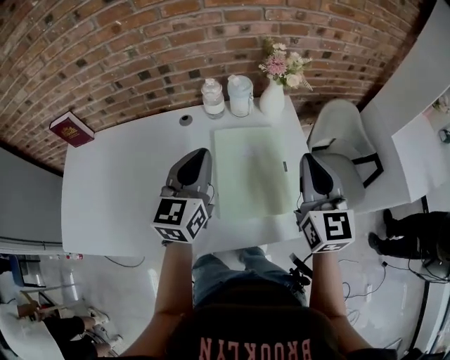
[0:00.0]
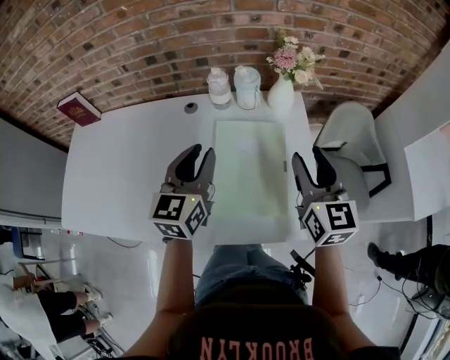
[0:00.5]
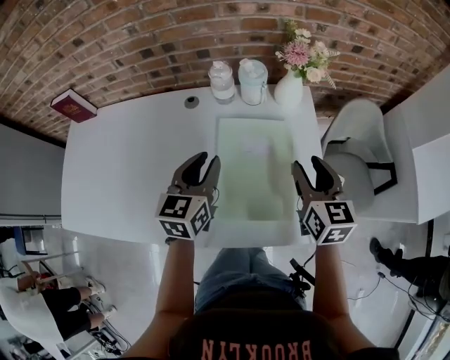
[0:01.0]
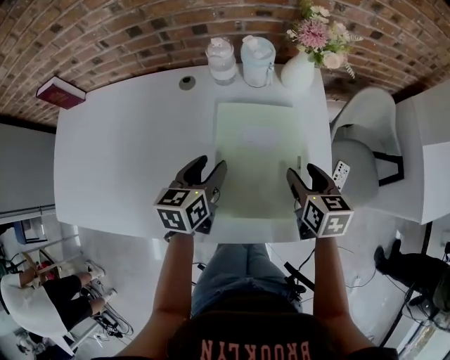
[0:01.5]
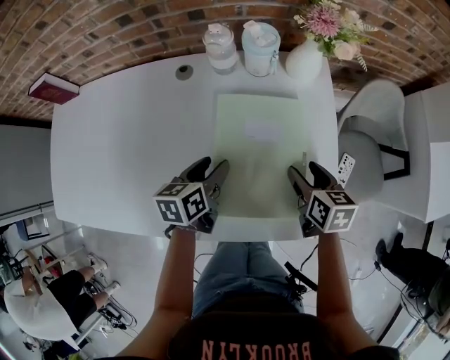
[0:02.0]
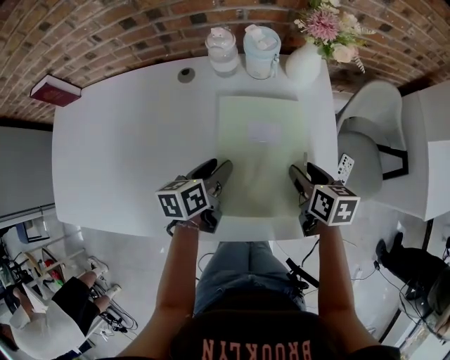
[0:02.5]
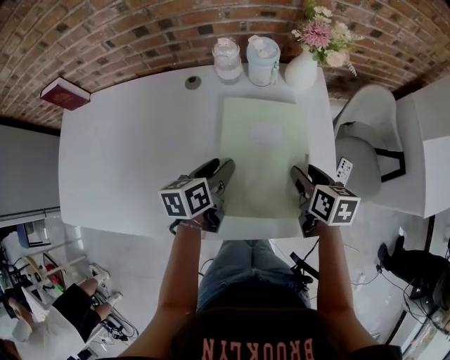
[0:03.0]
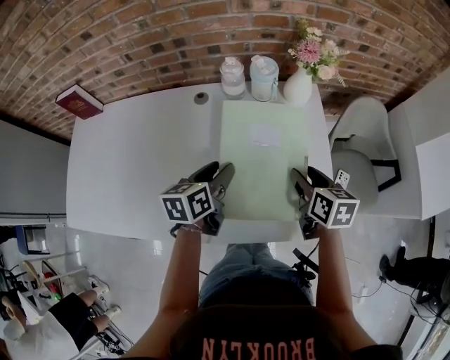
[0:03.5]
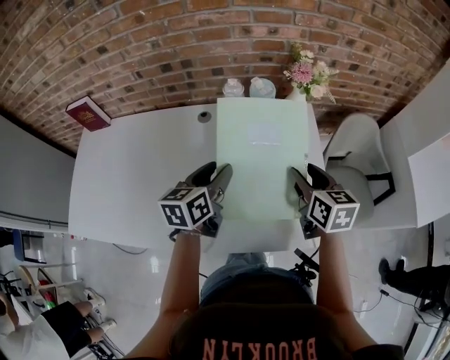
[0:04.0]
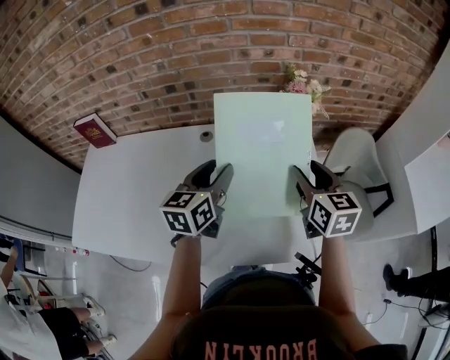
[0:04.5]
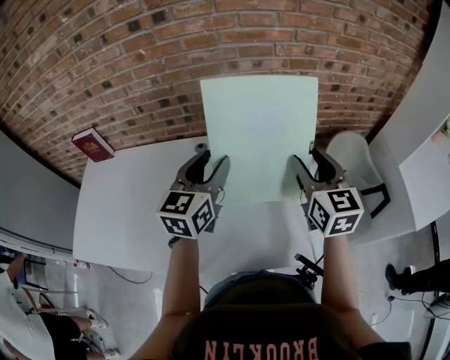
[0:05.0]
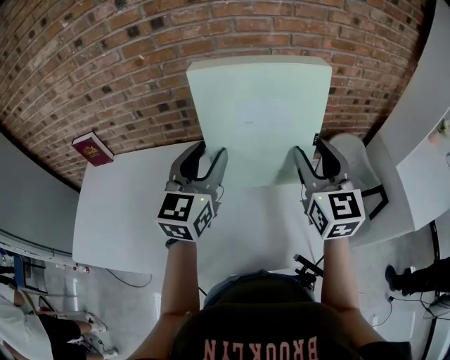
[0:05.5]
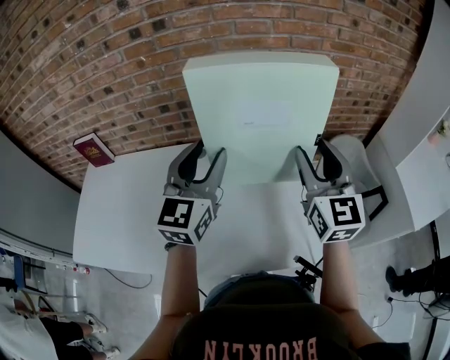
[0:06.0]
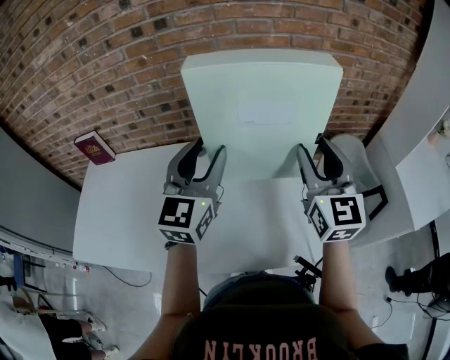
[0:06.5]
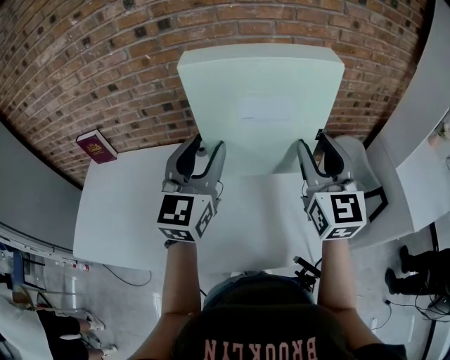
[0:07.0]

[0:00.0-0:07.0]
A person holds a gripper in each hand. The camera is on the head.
0:00.0 to 0:02.0: The two grippers go about 25 cm downward. The left gripper angles its fingers downward, by roughly 30 degrees, and opens up. The right gripper tilts its fingers about 40 degrees downward, and opens.
0:02.0 to 0:03.5: The grippers both shift upward by about 10 cm.
0:03.5 to 0:05.0: Both grippers travel together upward, about 20 cm. The left gripper rotates about 40 degrees, while the right gripper changes its angle by some 40 degrees.
0:05.0 to 0:07.0: The grippers both shift upward by approximately 10 cm.

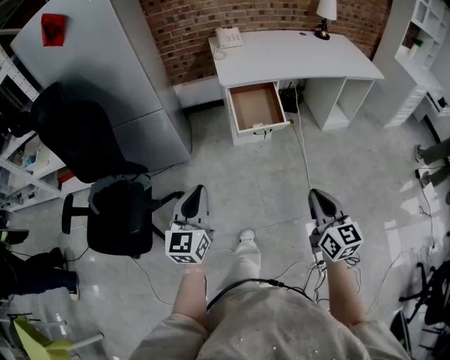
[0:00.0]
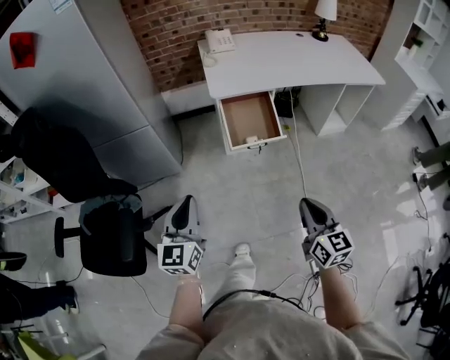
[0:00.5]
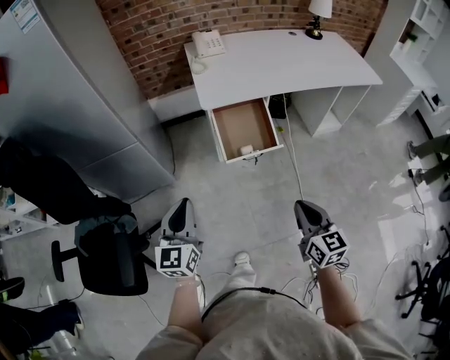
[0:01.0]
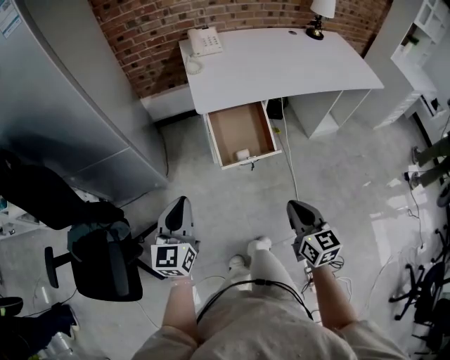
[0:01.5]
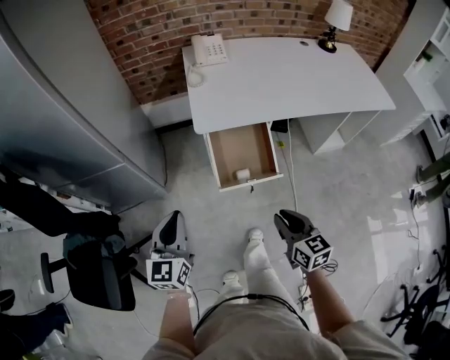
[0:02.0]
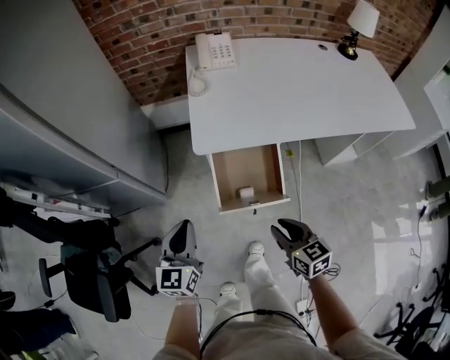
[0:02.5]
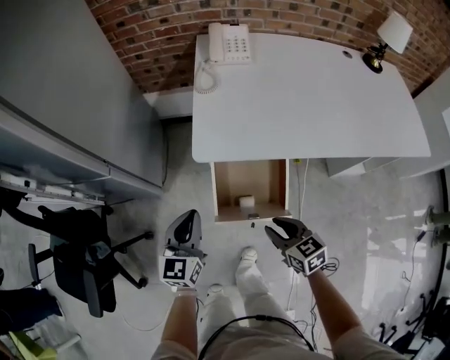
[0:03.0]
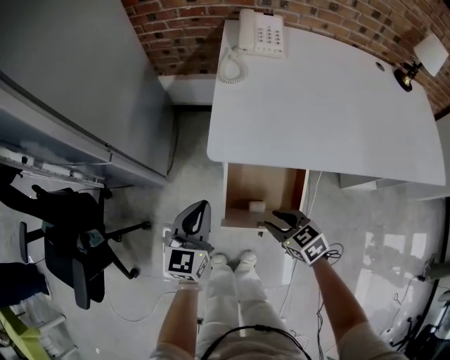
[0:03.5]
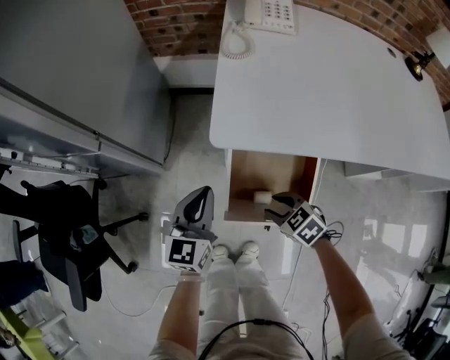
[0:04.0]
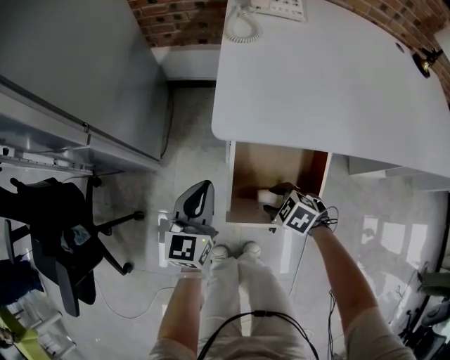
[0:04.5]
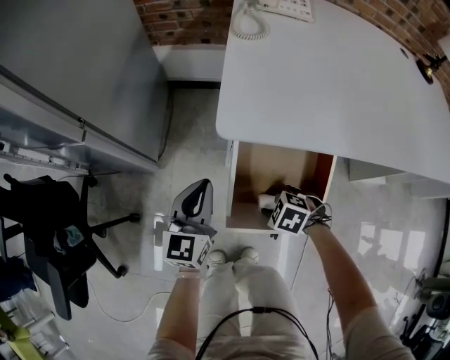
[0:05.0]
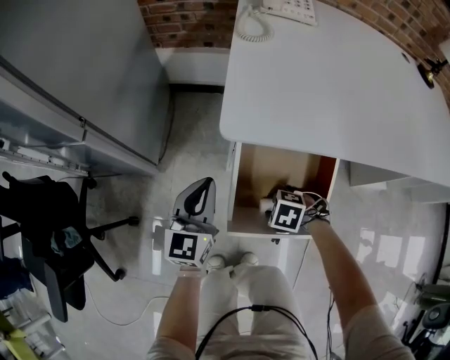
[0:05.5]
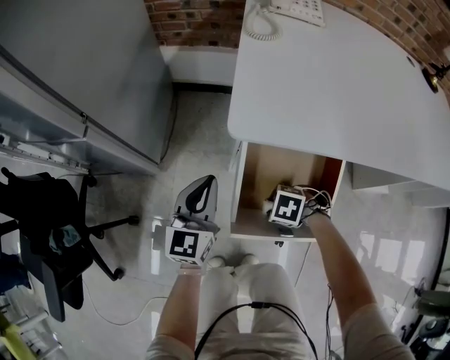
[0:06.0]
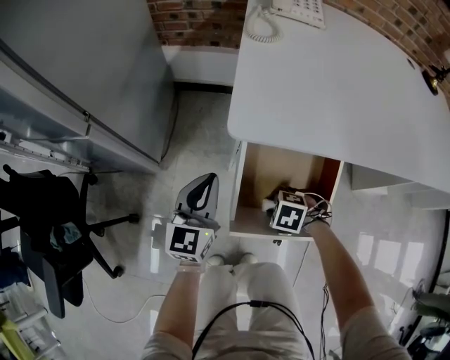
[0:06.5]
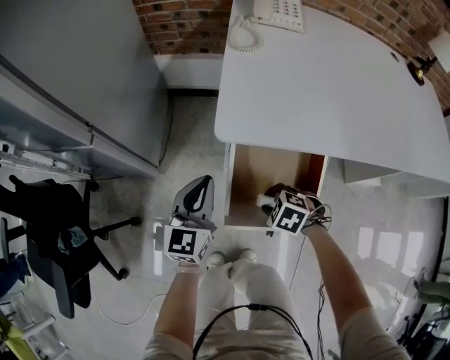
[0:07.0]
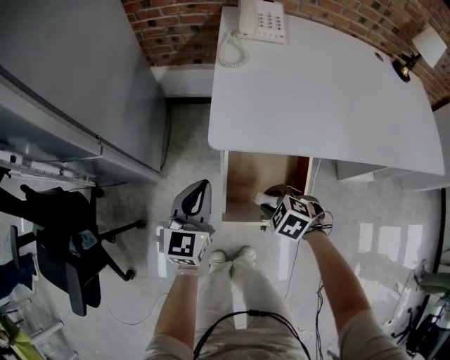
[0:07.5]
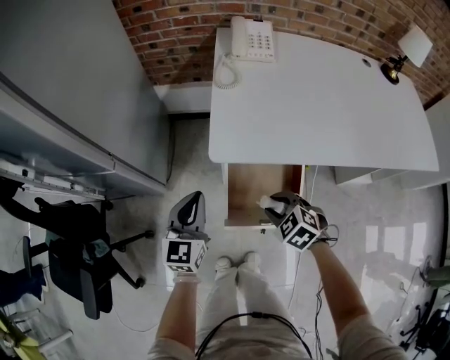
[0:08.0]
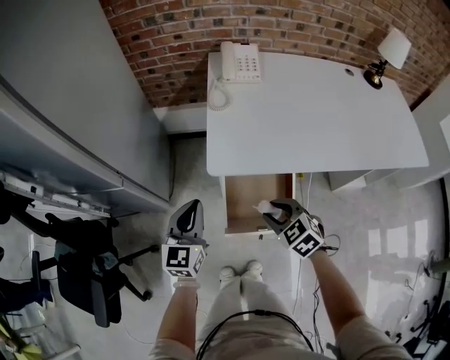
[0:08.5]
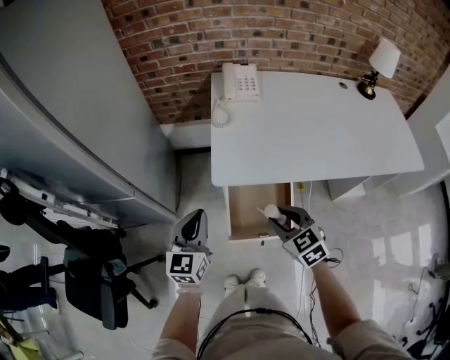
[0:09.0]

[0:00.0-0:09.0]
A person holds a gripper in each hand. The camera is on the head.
0:00.0 to 0:02.0: The grippers both shift forward by about 30 cm.
0:02.0 to 0:04.5: The grippers both shift downward by roughly 25 cm. The right gripper tilts its fingers about 40 degrees downward, and opens.
0:07.0 to 0:09.0: The right gripper goes roughly 30 cm upward, and tilts its fingers roughly 40 degrees upward. The left gripper travels upward by roughly 20 cm.

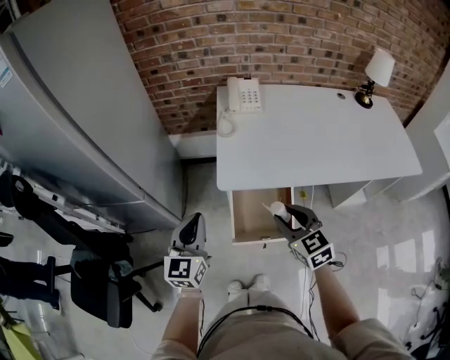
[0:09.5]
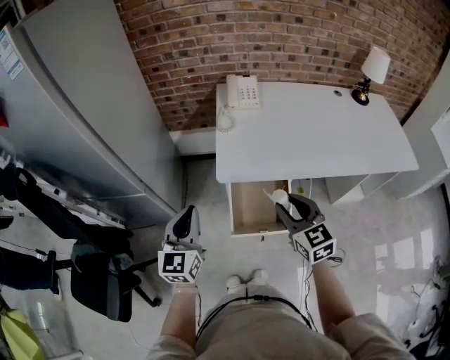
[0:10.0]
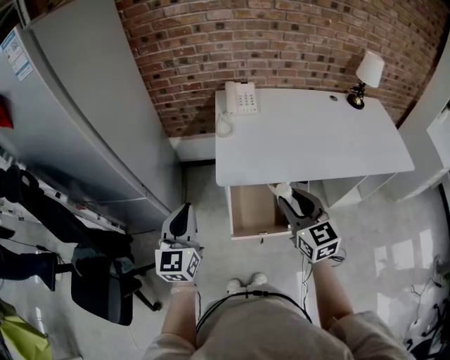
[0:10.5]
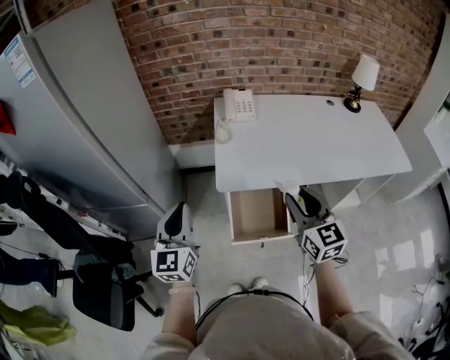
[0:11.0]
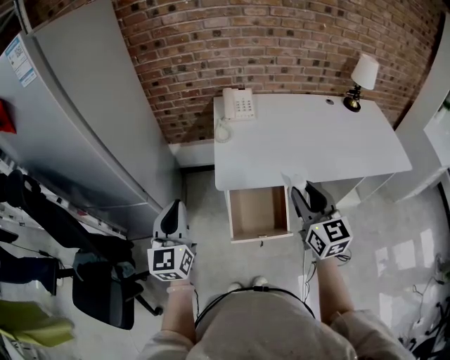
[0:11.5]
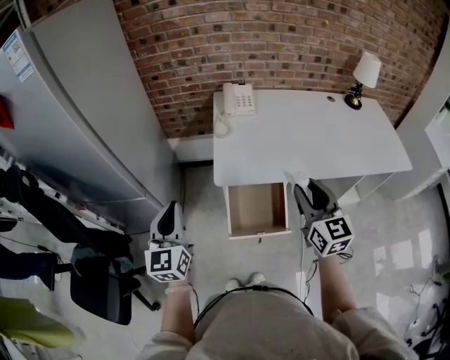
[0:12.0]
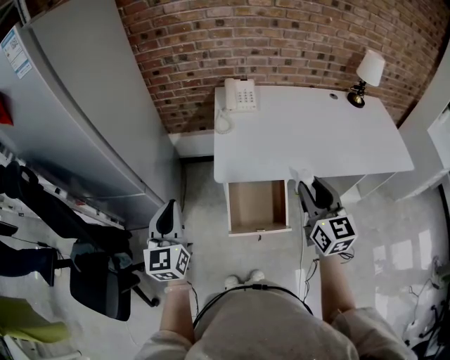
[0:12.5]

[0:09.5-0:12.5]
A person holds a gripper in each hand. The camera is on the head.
0:09.5 to 0:11.0: Both grippers travel together upward, some 10 cm. The right gripper changes its angle by approximately 20 degrees.
0:11.0 to 0:12.5: There are only small adjustments of the grippers.

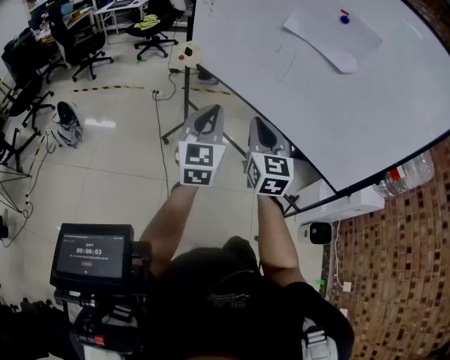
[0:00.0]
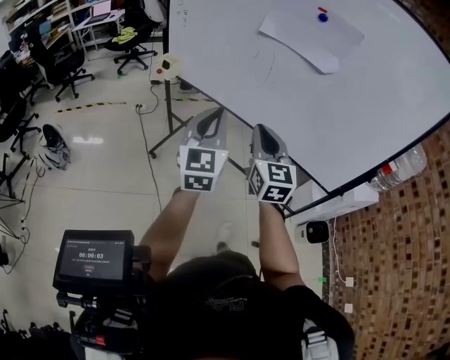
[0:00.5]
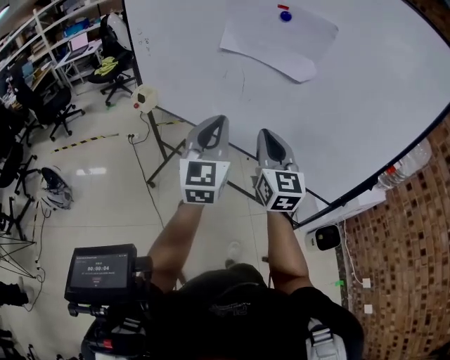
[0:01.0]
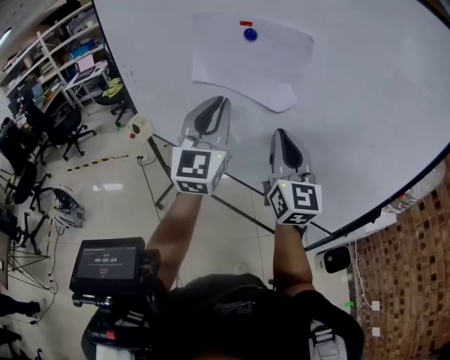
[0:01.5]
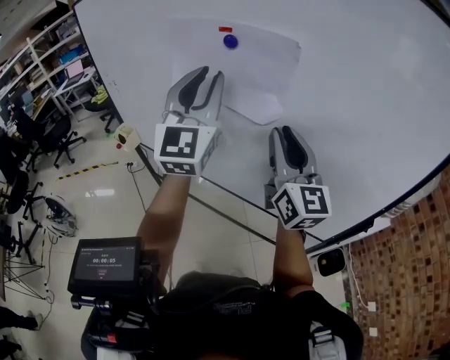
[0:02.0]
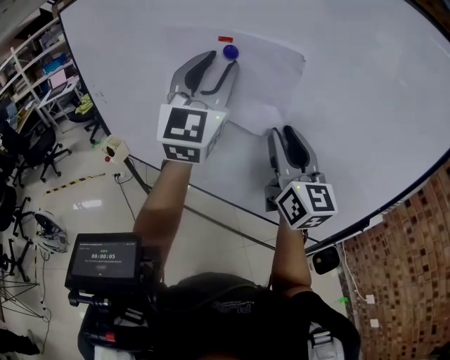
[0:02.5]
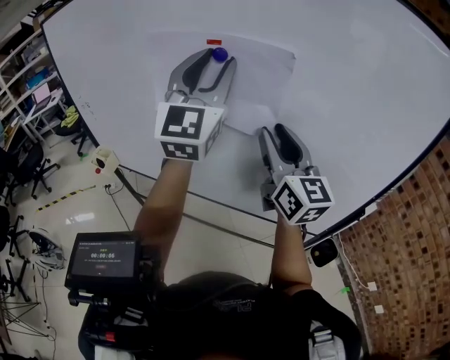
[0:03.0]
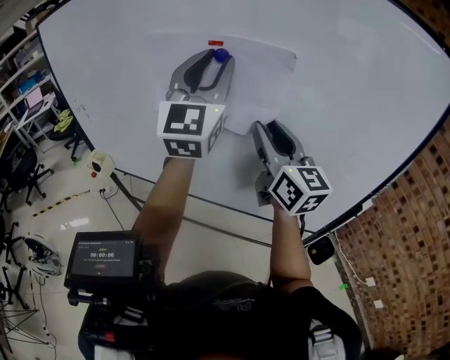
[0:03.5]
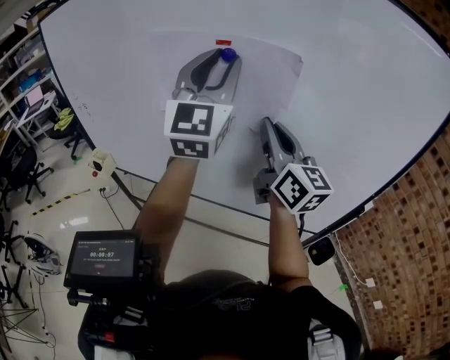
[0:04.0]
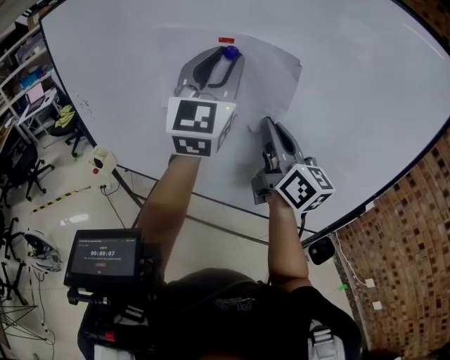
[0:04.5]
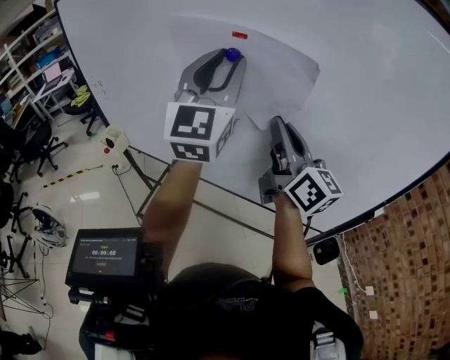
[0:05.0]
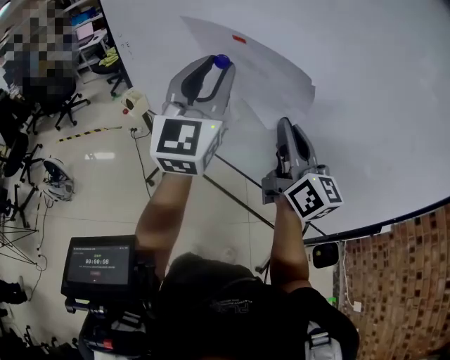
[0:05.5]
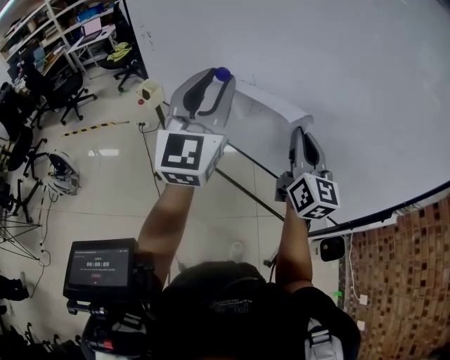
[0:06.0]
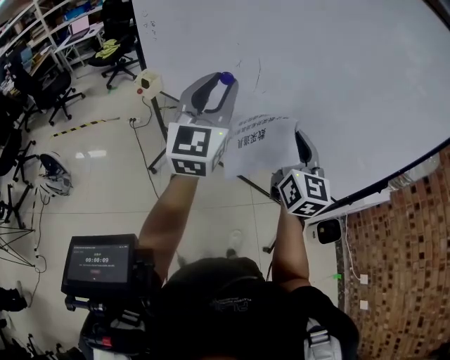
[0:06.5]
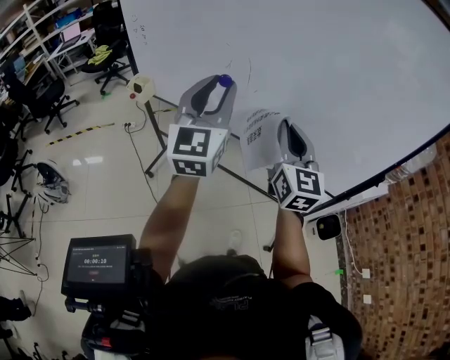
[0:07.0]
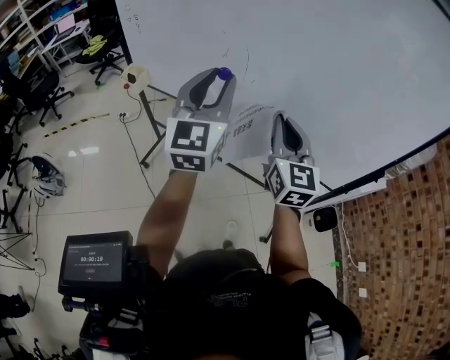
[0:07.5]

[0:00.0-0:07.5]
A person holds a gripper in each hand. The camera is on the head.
0:00.0 to 0:02.0: The left gripper is displaced forward, upward and to the right by approximately 40 cm, and turns by about 30 degrees. Meanwhile the right gripper heads to the right, forward and upward, covering approximately 35 cm, and turns by some 20 degrees.
0:02.0 to 0:04.0: The left gripper is displaced upward by approximately 5 cm.
0:04.0 to 0:05.5: The left gripper is displaced downward, to the left and backward by about 15 cm. Meanwhile the right gripper is displaced downward by about 5 cm.
0:05.5 to 0:07.5: The right gripper is displaced backward and downward by roughly 10 cm, and changes its angle by approximately 40 degrees, while the left gripper travels downward and backward by approximately 10 cm.
